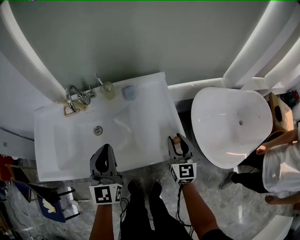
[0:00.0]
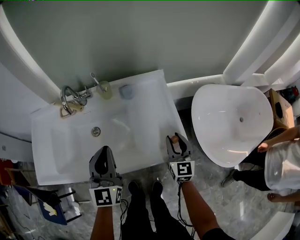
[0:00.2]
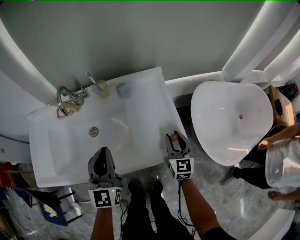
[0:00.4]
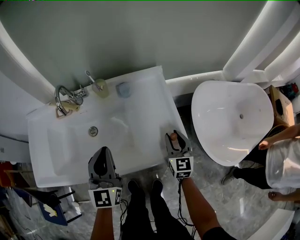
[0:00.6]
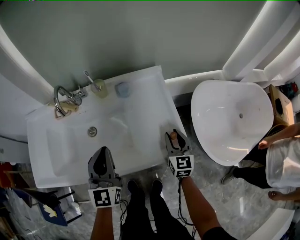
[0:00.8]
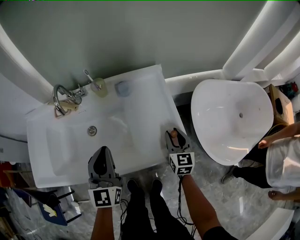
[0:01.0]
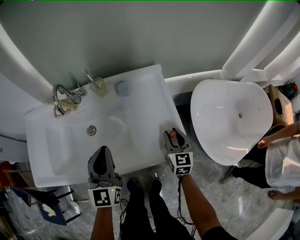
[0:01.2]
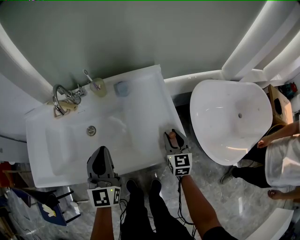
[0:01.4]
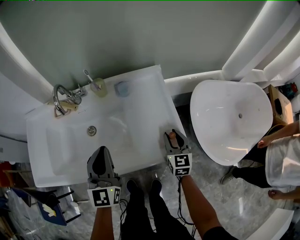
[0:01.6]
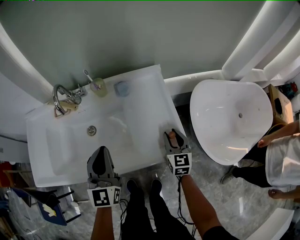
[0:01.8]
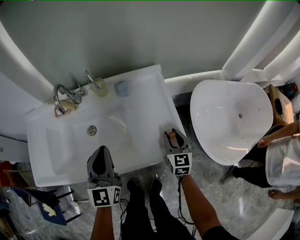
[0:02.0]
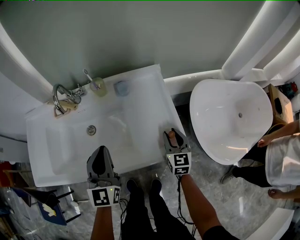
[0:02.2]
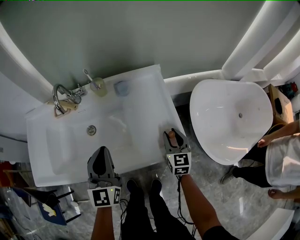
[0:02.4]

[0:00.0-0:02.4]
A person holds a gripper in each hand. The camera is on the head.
0.0 to 1.2 s: The right gripper heads downward, covering some 10 cm; the left gripper moves downward, approximately 5 cm.
1.2 to 2.4 s: Both grippers stay put.

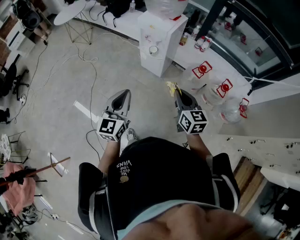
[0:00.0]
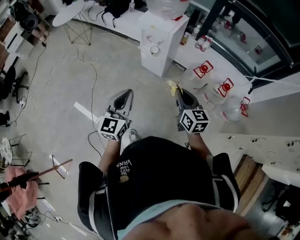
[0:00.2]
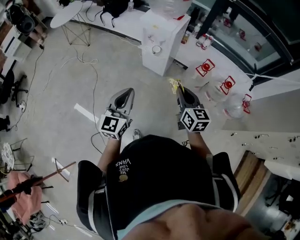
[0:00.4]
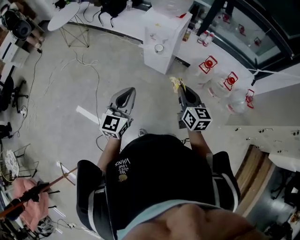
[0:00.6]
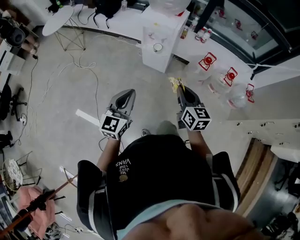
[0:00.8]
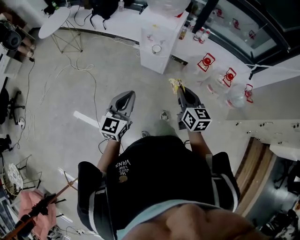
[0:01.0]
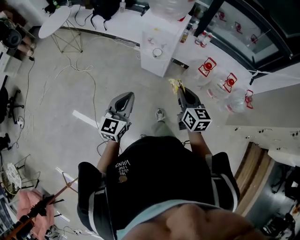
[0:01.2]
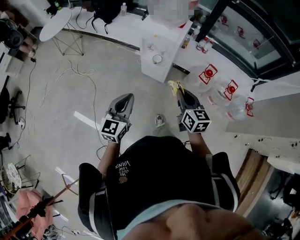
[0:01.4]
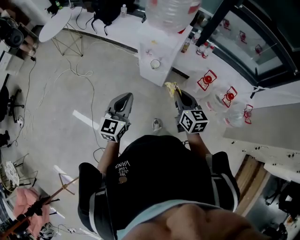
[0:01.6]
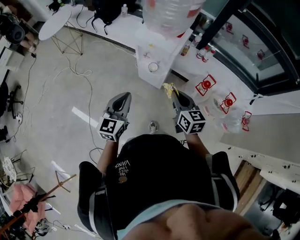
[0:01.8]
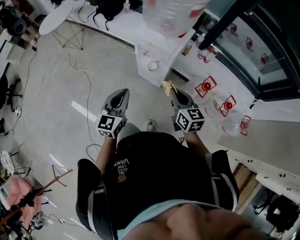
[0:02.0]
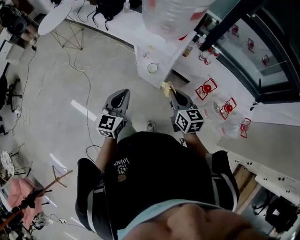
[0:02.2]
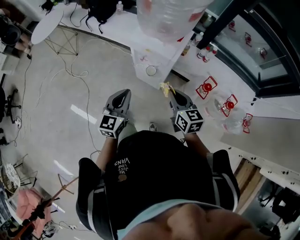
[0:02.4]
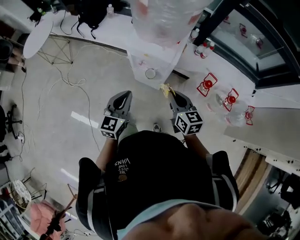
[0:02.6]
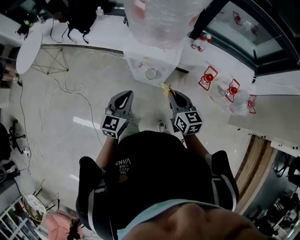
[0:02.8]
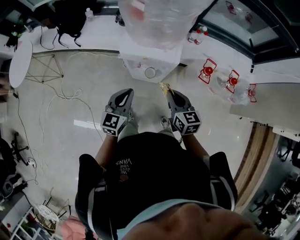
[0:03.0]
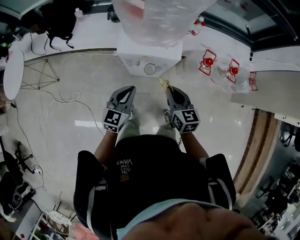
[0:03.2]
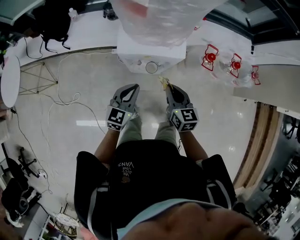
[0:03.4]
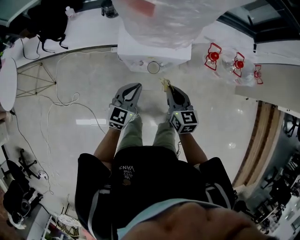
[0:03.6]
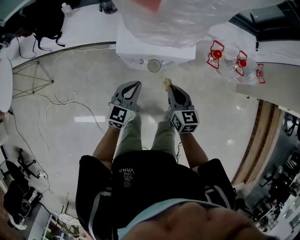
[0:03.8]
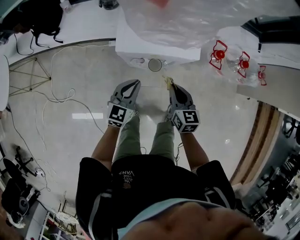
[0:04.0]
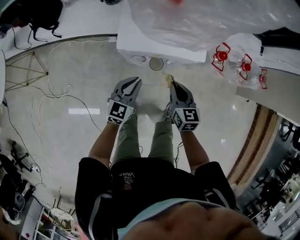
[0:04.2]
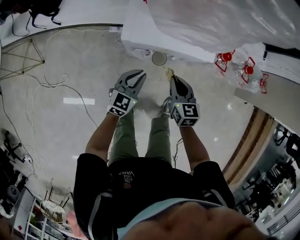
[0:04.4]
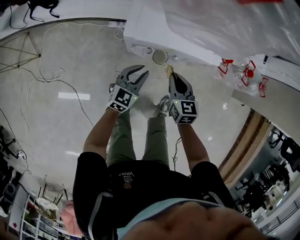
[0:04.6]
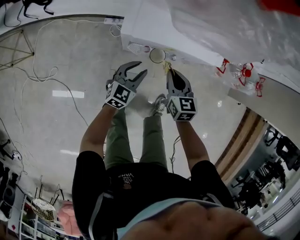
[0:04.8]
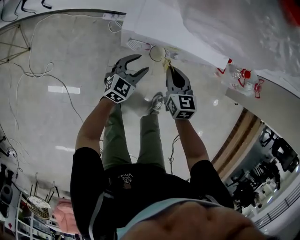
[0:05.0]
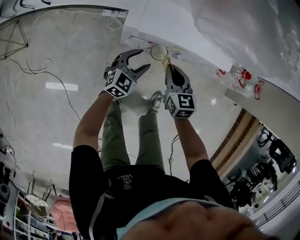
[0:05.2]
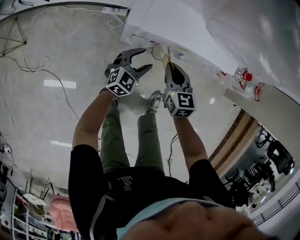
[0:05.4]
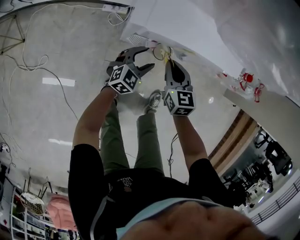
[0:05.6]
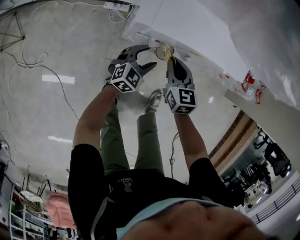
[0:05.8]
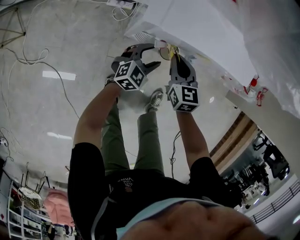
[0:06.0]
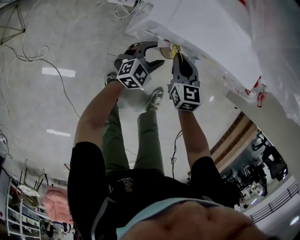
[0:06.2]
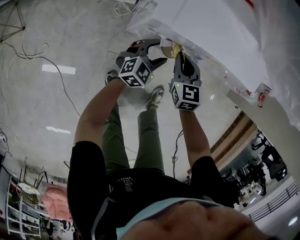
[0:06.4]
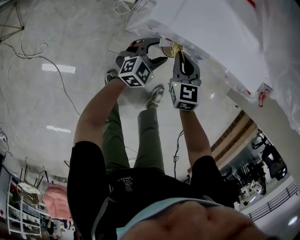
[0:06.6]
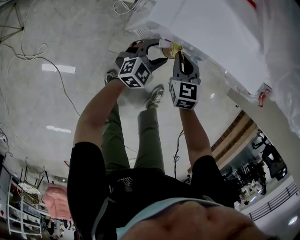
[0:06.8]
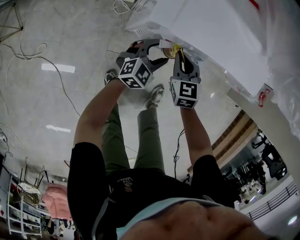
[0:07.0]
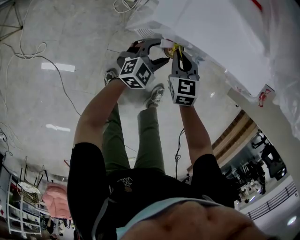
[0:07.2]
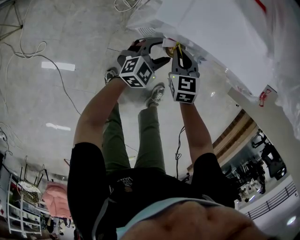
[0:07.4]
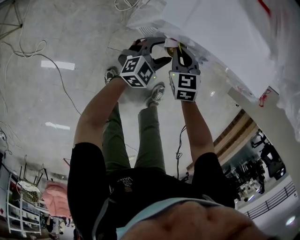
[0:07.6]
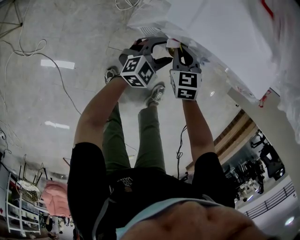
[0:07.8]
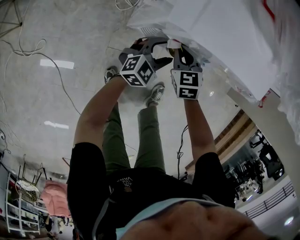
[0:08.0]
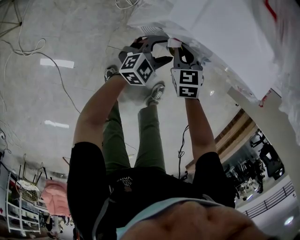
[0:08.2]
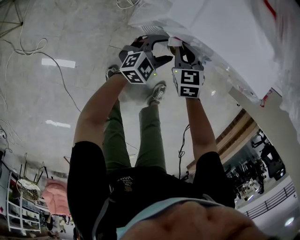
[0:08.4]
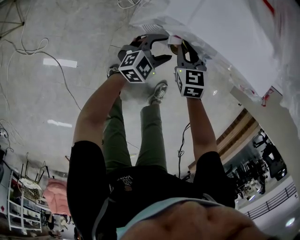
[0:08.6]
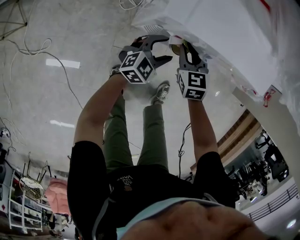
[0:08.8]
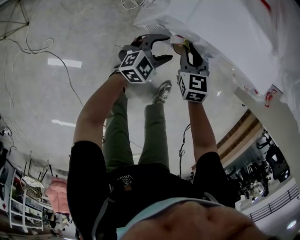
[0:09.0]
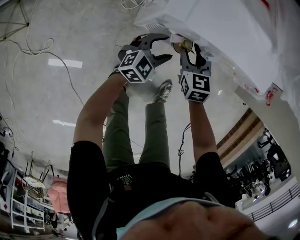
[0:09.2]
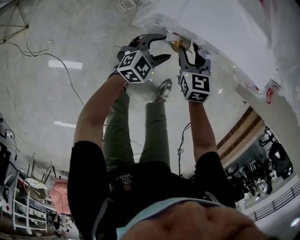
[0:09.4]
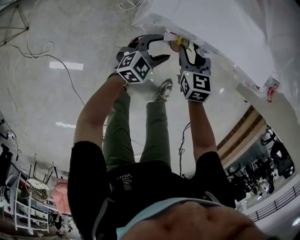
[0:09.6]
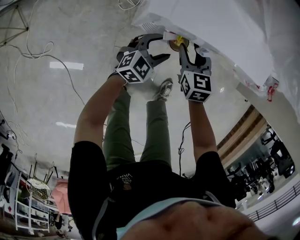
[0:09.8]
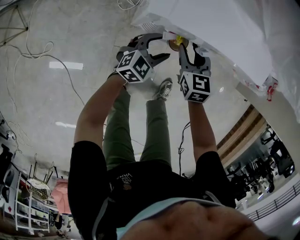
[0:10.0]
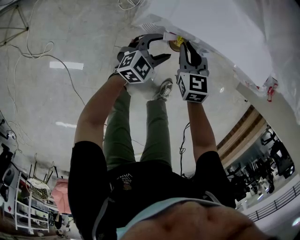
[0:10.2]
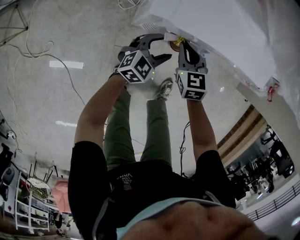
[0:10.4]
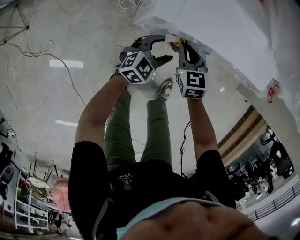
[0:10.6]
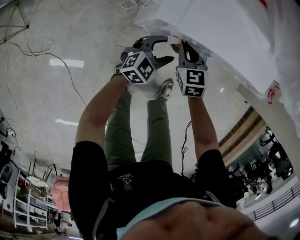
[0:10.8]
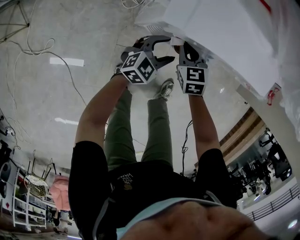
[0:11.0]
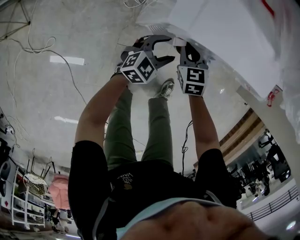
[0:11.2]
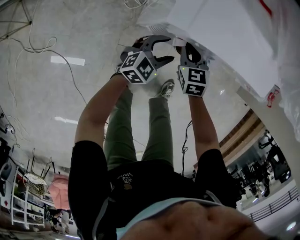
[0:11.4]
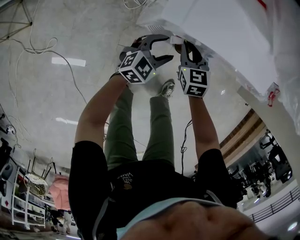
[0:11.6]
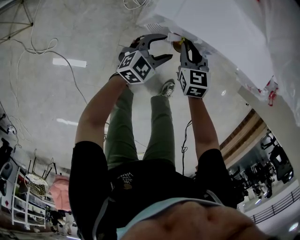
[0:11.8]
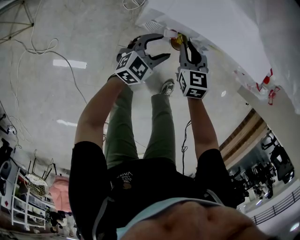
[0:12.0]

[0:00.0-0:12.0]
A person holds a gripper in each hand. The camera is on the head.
0.0 to 1.6 s: The grippers both shift forward and to the left by about 25 cm.
1.6 to 3.0 s: Both grippers travel together forward, approximately 25 cm. The left gripper rotates some 20 degrees.
3.0 to 4.4 s: The left gripper goes roughly 30 cm downward and forward; the right gripper shifts roughly 20 cm downward.
4.4 to 6.0 s: The left gripper travels downward by roughly 20 cm, and opens; the right gripper travels downward, forward and to the left by some 15 cm.
6.0 to 7.6 s: The right gripper heads downward, covering roughly 5 cm.
7.6 to 9.0 s: The grippers move only a little.
9.0 to 10.4 s: The right gripper opens, then closes once more.
10.4 to 12.0 s: The grippers move only a little.

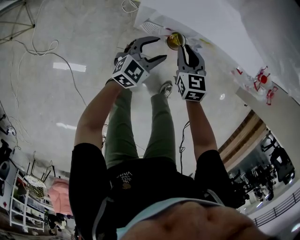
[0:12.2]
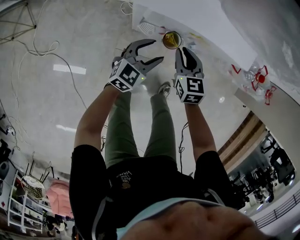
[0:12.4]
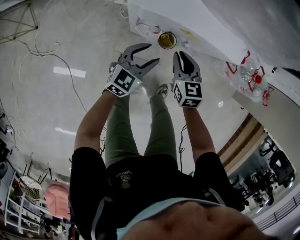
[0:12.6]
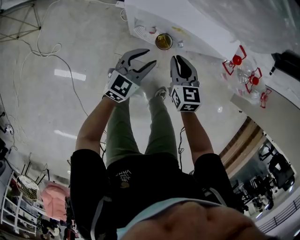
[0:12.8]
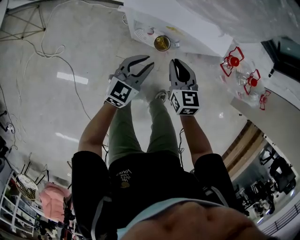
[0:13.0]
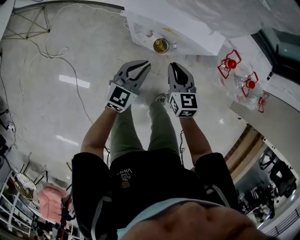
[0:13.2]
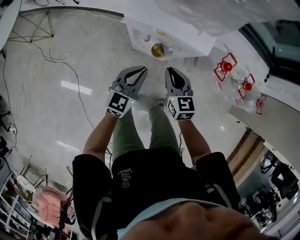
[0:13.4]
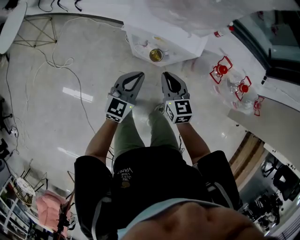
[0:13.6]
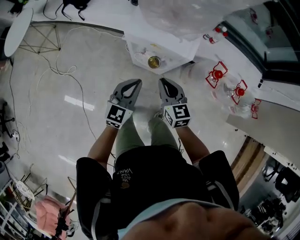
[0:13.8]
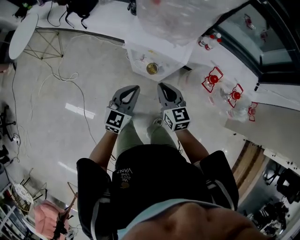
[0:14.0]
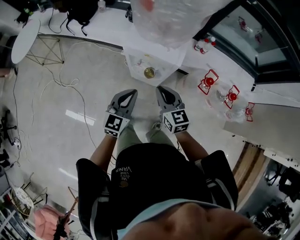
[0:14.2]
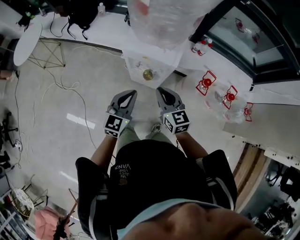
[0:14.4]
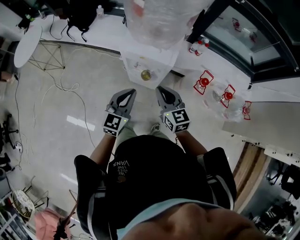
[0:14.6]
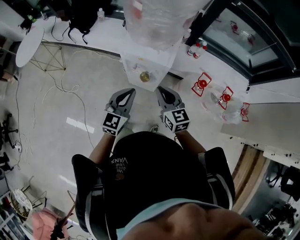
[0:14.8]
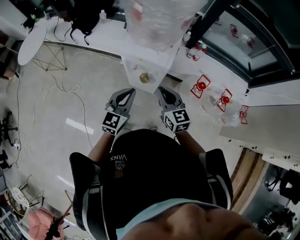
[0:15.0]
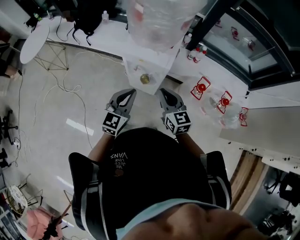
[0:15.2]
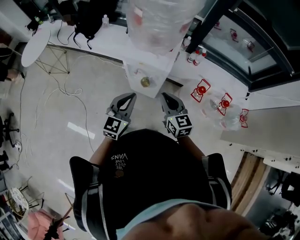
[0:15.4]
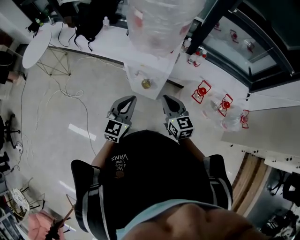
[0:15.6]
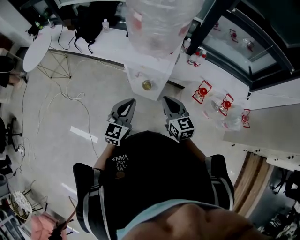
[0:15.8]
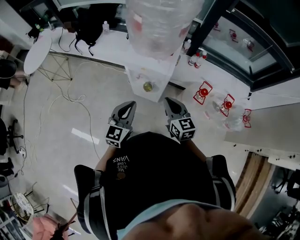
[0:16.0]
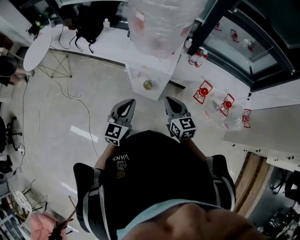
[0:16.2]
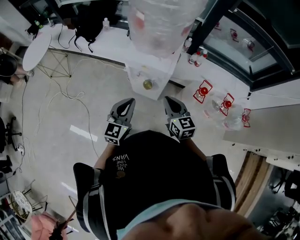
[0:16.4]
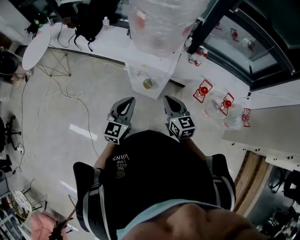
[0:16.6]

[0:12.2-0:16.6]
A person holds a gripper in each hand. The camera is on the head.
12.2 to 13.6 s: The two grippers go about 25 cm upward and backward. The left gripper rotates some 30 degrees, and closes.
13.6 to 15.2 s: The two grippers go roughly 25 cm upward and backward.
15.2 to 16.6 s: The grippers move only a little.

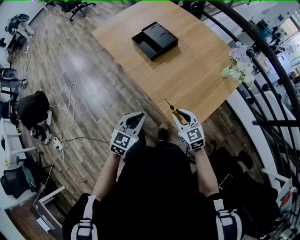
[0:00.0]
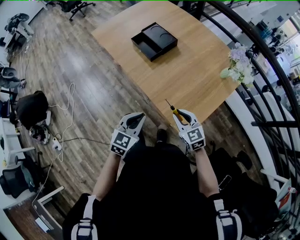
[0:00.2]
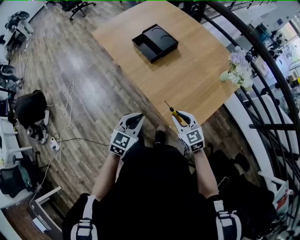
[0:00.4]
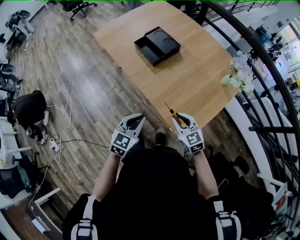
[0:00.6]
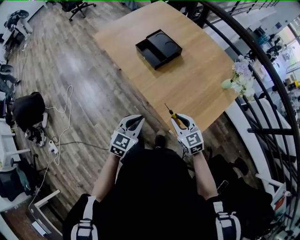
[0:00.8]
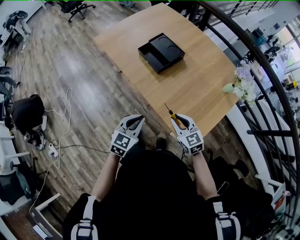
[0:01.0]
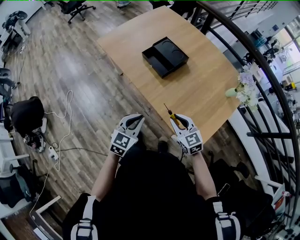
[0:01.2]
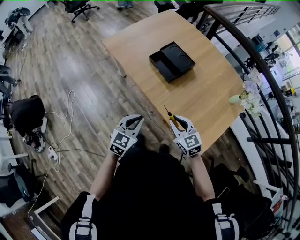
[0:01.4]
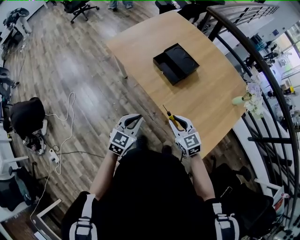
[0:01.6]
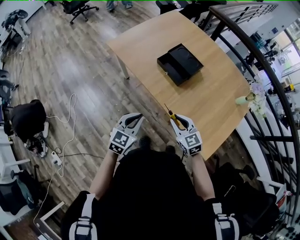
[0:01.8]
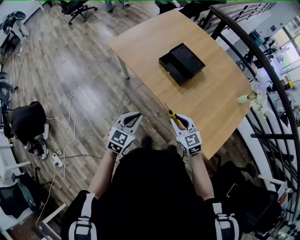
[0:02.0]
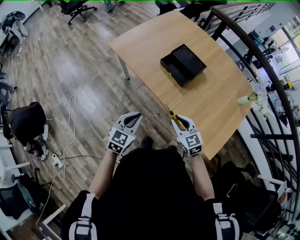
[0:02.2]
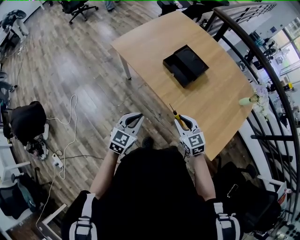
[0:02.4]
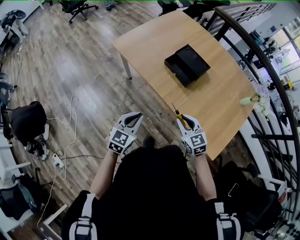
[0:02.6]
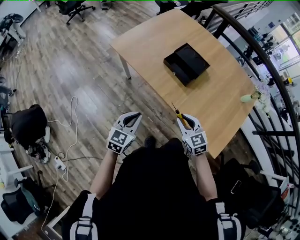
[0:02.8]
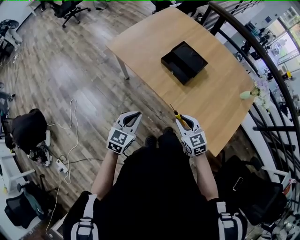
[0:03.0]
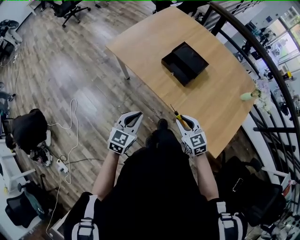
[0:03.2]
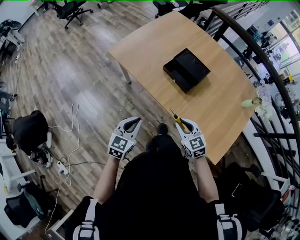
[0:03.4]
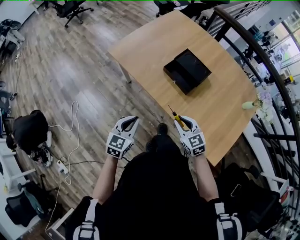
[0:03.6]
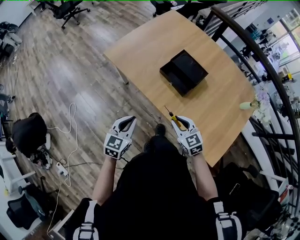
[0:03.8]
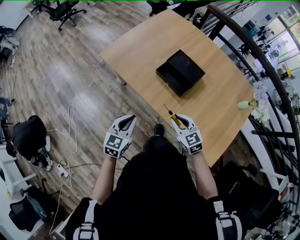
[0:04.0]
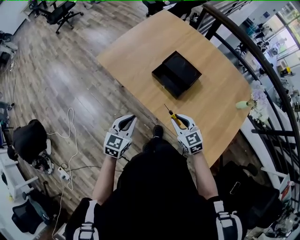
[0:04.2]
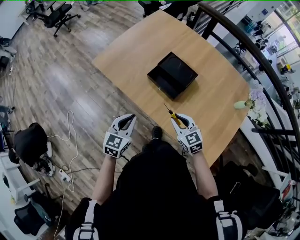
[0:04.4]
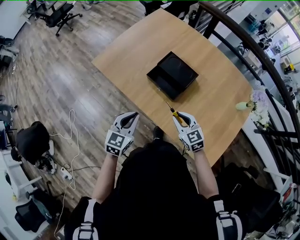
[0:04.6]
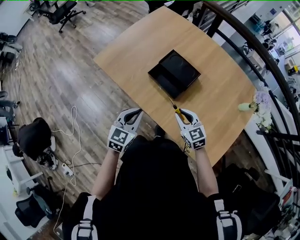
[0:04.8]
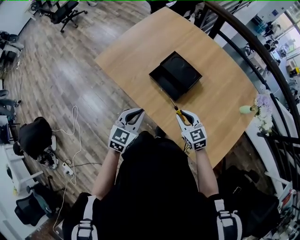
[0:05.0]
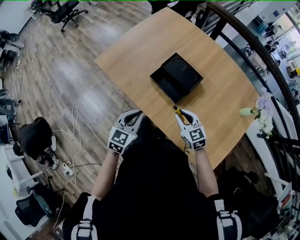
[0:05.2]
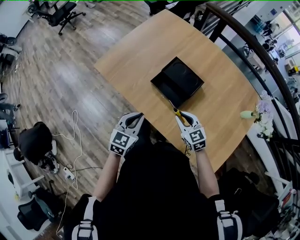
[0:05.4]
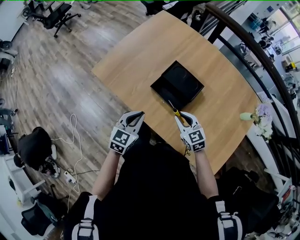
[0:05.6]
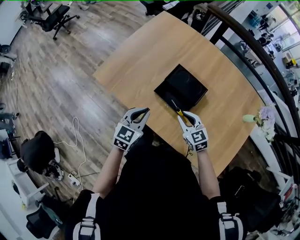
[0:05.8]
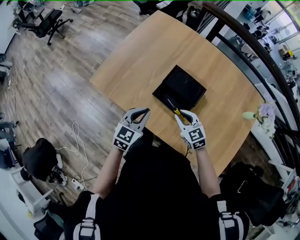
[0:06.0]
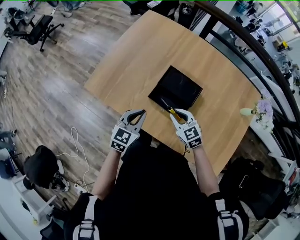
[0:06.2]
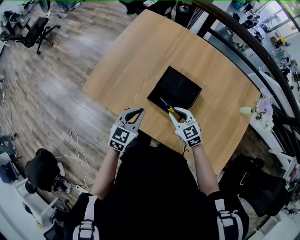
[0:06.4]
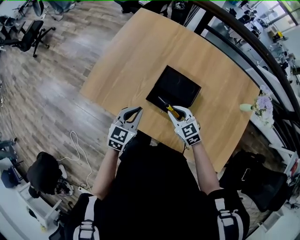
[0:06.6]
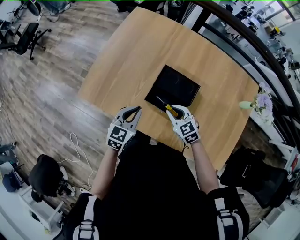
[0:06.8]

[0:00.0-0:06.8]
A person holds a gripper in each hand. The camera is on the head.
0.0 to 1.4 s: The two grippers go roughly 20 cm to the left and forward.
1.4 to 2.8 s: Both grippers move to the left, approximately 15 cm.
2.8 to 4.0 s: Both grippers travel together forward, roughly 10 cm.
4.0 to 5.4 s: Both grippers move forward and to the right, roughly 15 cm.
5.4 to 6.8 s: The right gripper goes about 15 cm forward and to the left. The left gripper goes some 15 cm forward.
